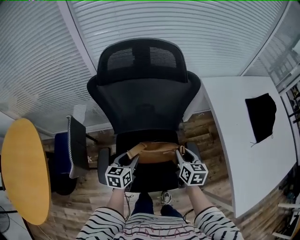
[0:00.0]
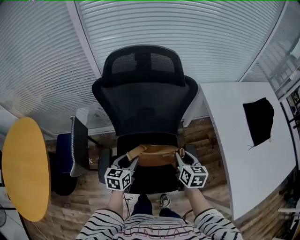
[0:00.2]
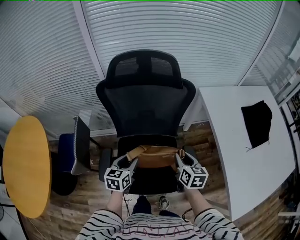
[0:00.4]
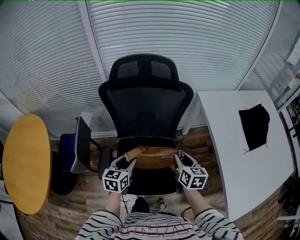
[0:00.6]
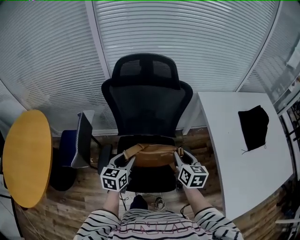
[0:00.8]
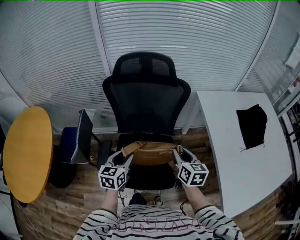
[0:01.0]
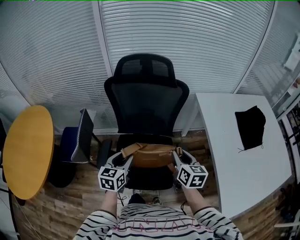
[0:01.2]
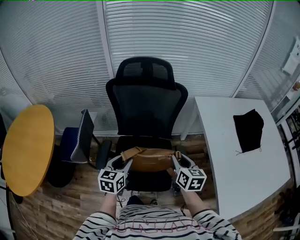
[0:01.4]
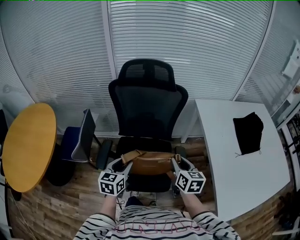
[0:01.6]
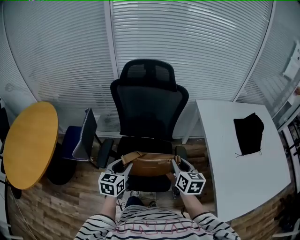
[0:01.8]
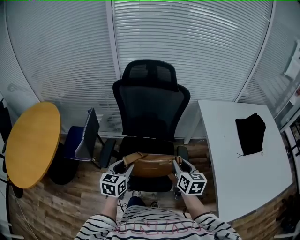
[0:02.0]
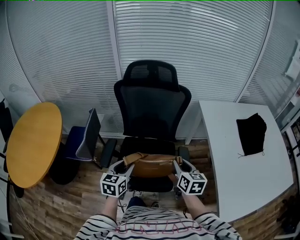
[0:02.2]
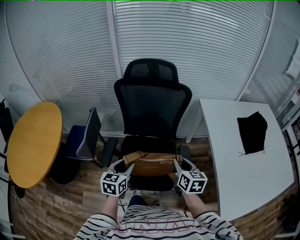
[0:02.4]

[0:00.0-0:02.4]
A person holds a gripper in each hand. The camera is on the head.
0:00.0 to 0:01.2: Both grippers travel together upward and backward, about 15 cm.
0:01.2 to 0:02.4: Both grippers move backward, approximately 5 cm.

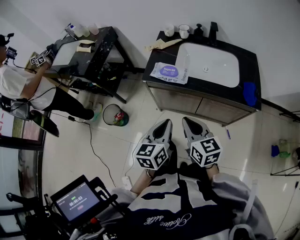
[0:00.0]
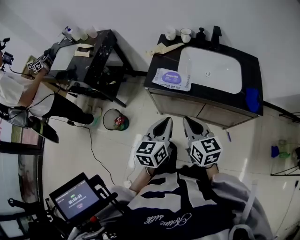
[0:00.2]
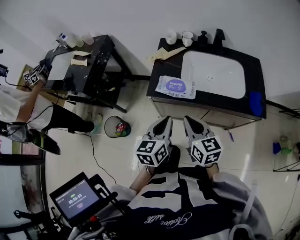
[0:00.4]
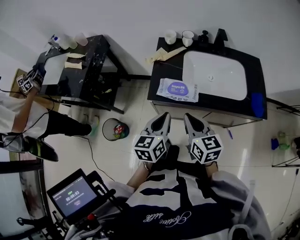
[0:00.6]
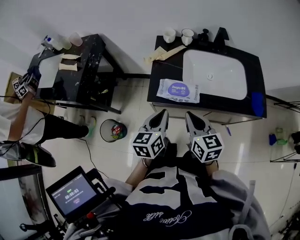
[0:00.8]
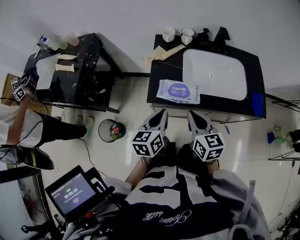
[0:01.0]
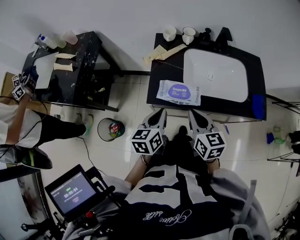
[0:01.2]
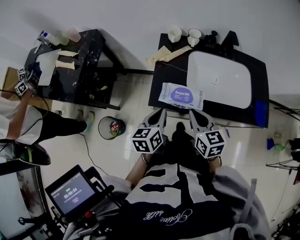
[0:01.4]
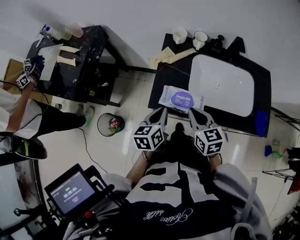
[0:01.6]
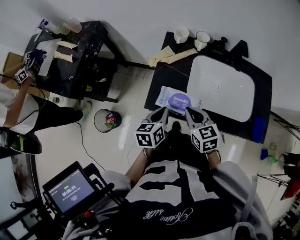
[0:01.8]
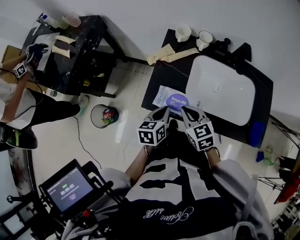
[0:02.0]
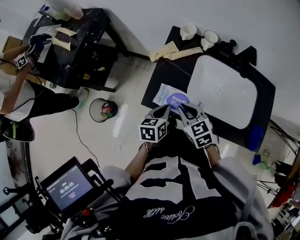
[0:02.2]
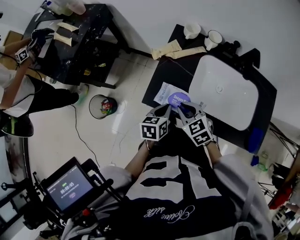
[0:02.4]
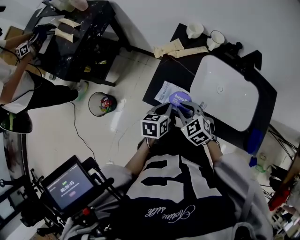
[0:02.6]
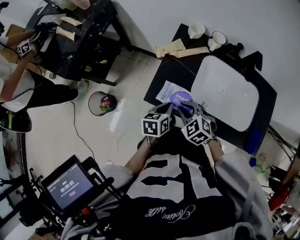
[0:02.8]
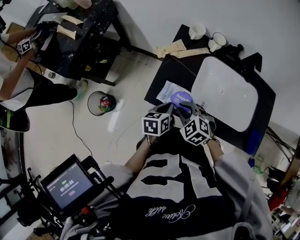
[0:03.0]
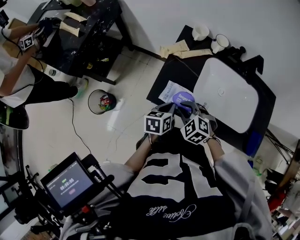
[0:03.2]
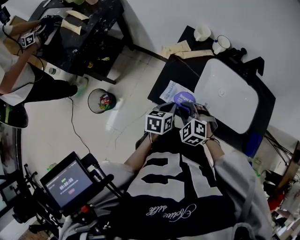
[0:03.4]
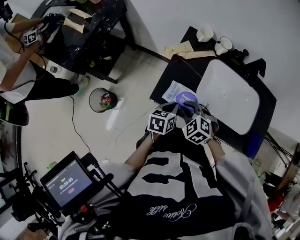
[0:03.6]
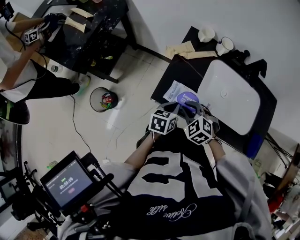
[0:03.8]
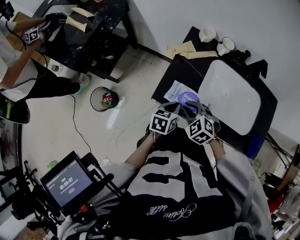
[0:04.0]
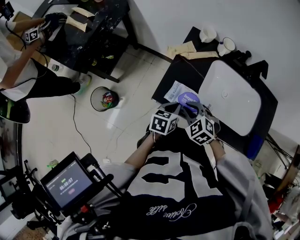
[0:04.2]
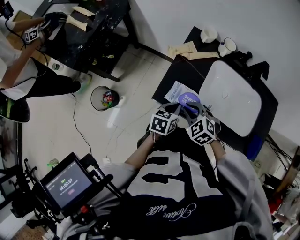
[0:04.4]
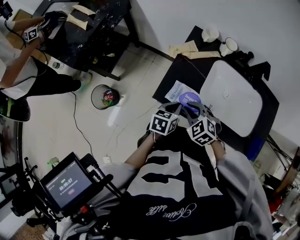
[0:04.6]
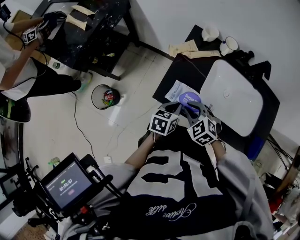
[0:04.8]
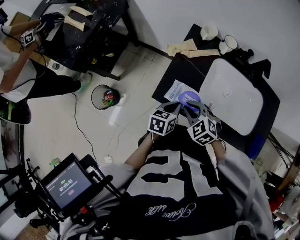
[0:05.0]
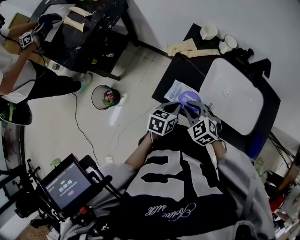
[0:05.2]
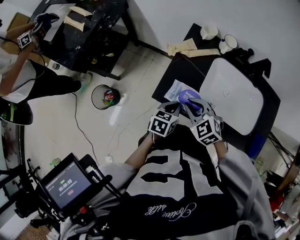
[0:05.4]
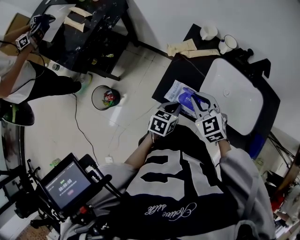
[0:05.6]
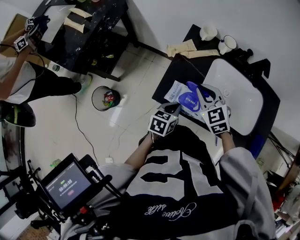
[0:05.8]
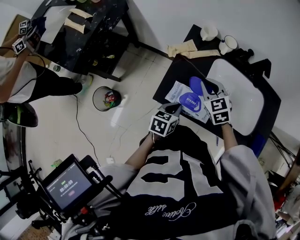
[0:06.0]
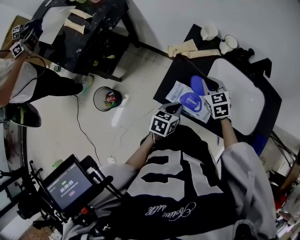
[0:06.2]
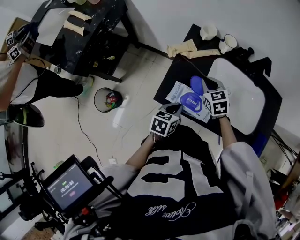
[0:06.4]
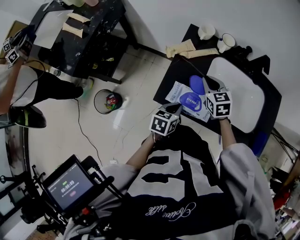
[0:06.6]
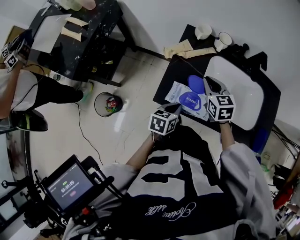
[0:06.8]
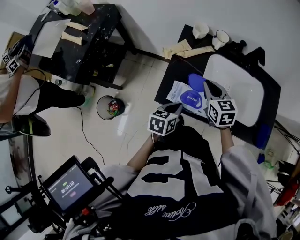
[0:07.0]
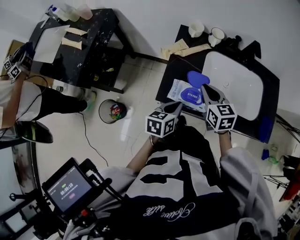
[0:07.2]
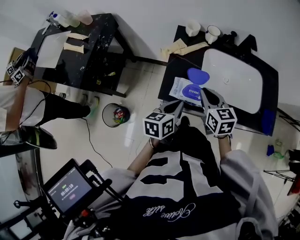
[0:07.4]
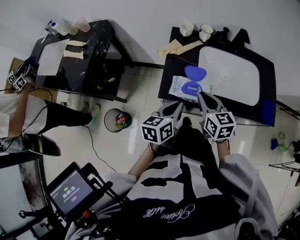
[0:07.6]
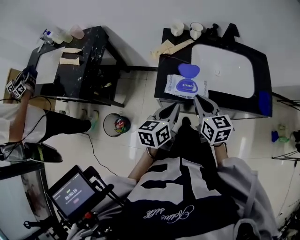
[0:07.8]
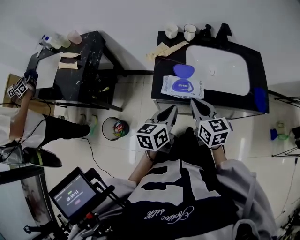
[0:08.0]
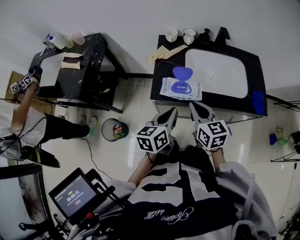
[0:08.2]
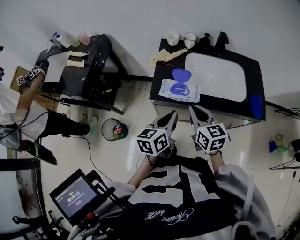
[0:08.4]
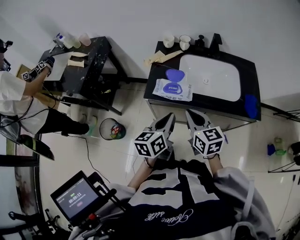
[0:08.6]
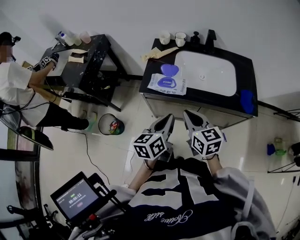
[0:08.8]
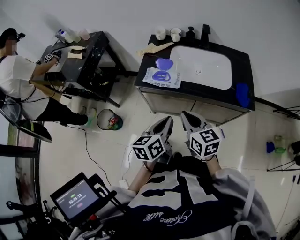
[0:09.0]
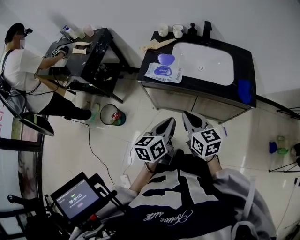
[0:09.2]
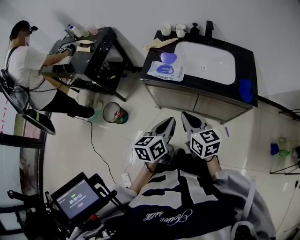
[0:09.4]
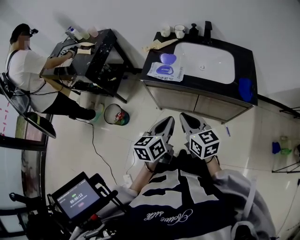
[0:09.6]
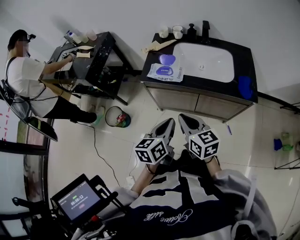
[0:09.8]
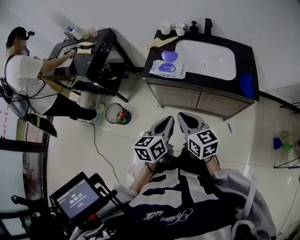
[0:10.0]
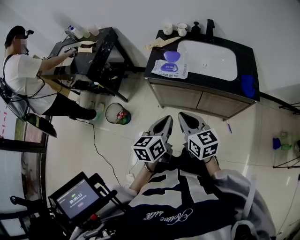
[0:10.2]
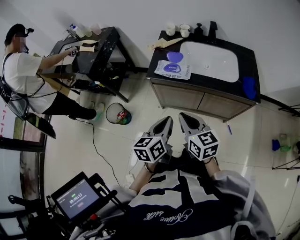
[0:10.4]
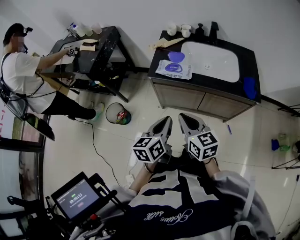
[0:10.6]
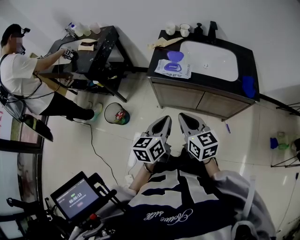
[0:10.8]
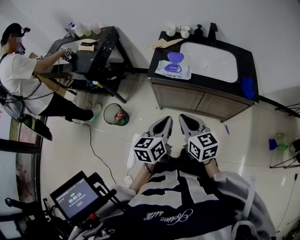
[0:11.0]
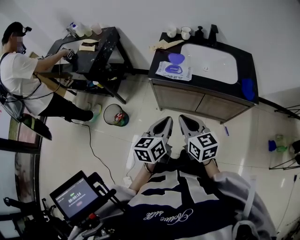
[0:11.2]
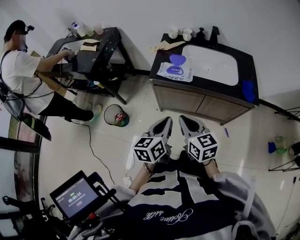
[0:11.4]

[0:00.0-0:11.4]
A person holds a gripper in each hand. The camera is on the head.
0:00.0 to 0:01.4: The left gripper heads forward and to the left, covering about 25 cm, while the right gripper travels forward by roughly 25 cm.
0:01.4 to 0:02.8: The right gripper shifts roughly 10 cm downward and forward, and rolls counterclockwise, seen from behind, by some 50 degrees; the left gripper goes approximately 10 cm downward and to the right.
0:02.8 to 0:04.2: The grippers stay close to where they were, moving slightly.
0:04.2 to 0:05.6: The right gripper heads upward, covering approximately 5 cm.
0:05.6 to 0:07.2: The right gripper moves some 10 cm forward and comes back, and turns by about 40 degrees. The left gripper goes roughly 5 cm upward.
0:07.2 to 0:08.6: The right gripper heads backward, covering about 20 cm; the left gripper moves backward, upward and to the right, approximately 20 cm.
0:08.6 to 0:10.0: Both grippers move backward, about 15 cm.
0:10.0 to 0:11.4: The grippers both shift to the left by approximately 5 cm.

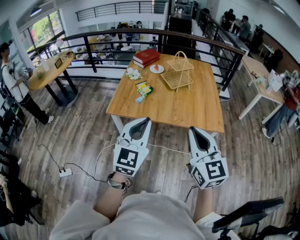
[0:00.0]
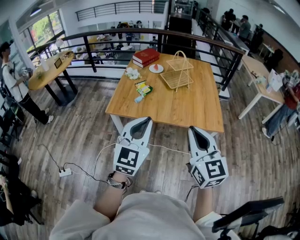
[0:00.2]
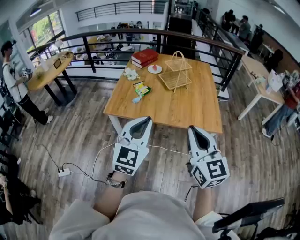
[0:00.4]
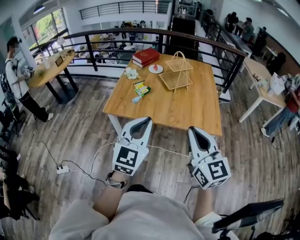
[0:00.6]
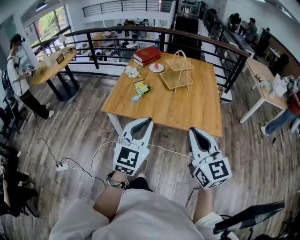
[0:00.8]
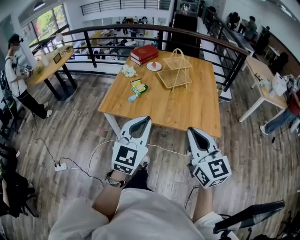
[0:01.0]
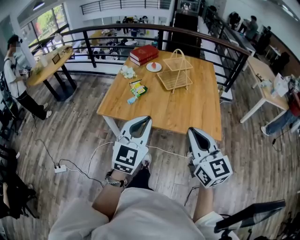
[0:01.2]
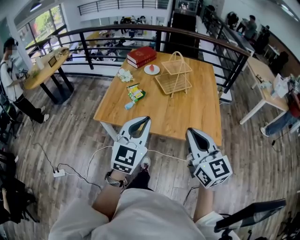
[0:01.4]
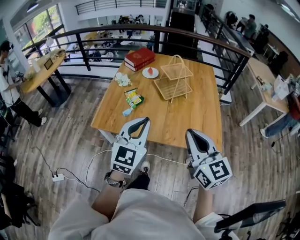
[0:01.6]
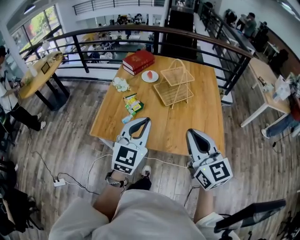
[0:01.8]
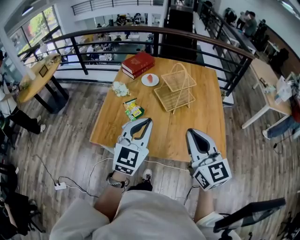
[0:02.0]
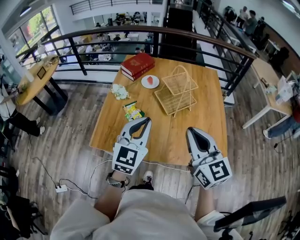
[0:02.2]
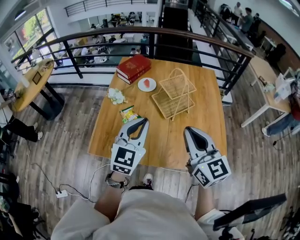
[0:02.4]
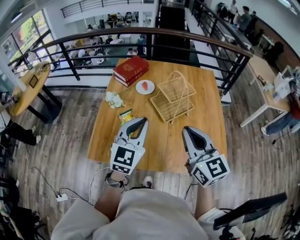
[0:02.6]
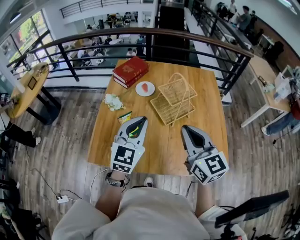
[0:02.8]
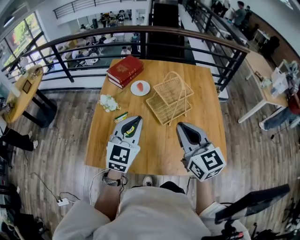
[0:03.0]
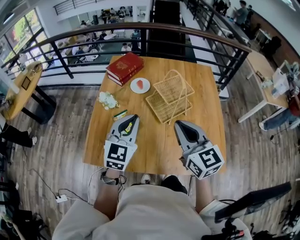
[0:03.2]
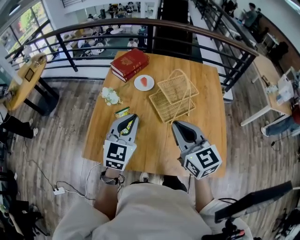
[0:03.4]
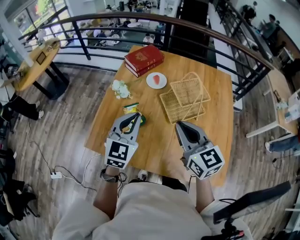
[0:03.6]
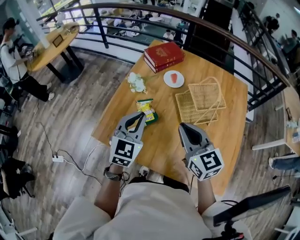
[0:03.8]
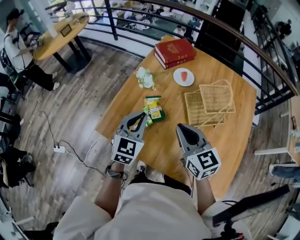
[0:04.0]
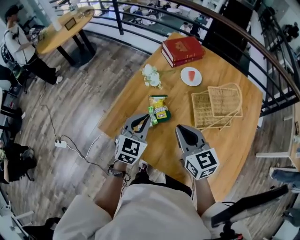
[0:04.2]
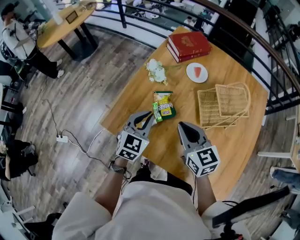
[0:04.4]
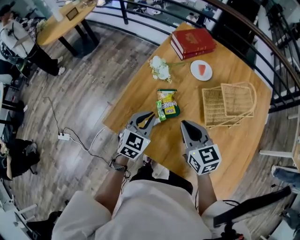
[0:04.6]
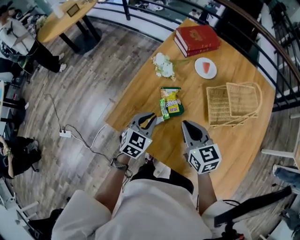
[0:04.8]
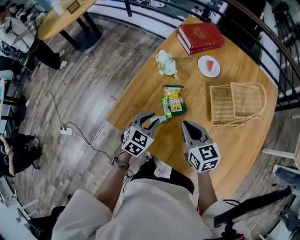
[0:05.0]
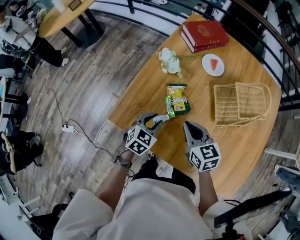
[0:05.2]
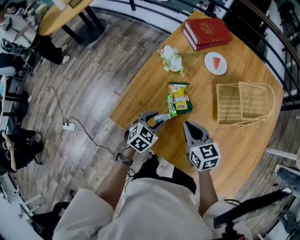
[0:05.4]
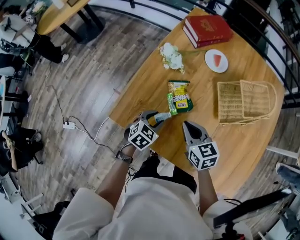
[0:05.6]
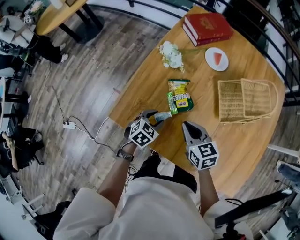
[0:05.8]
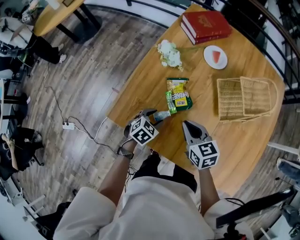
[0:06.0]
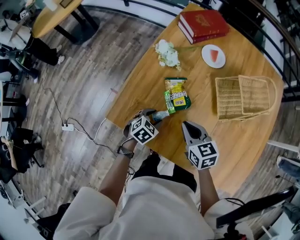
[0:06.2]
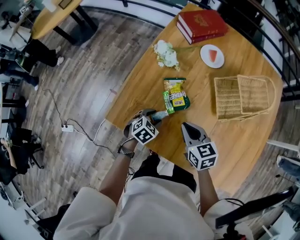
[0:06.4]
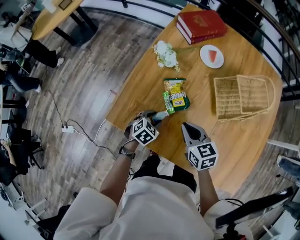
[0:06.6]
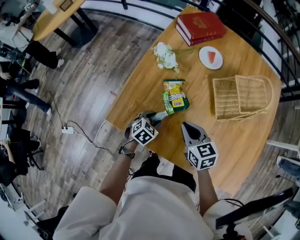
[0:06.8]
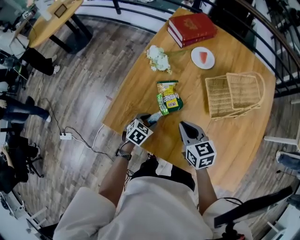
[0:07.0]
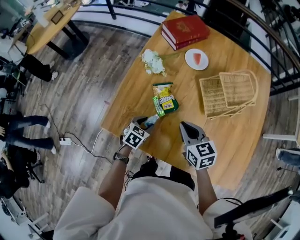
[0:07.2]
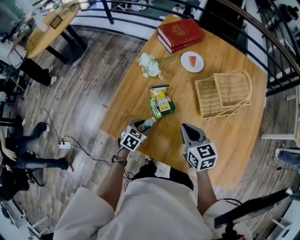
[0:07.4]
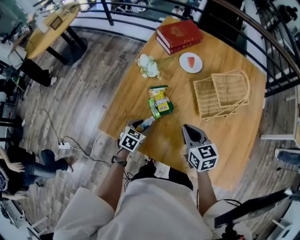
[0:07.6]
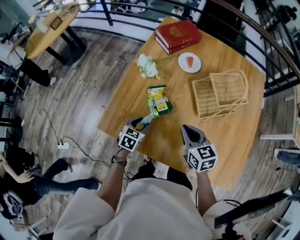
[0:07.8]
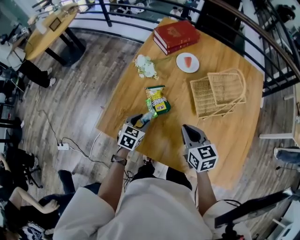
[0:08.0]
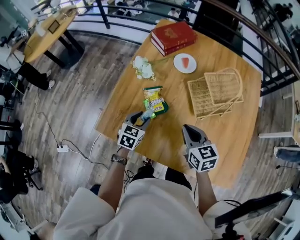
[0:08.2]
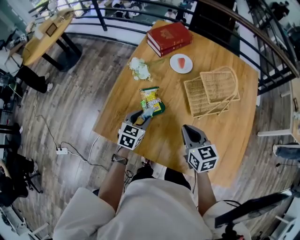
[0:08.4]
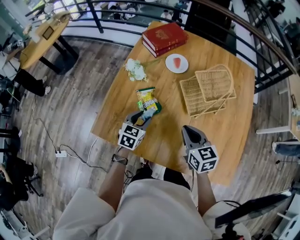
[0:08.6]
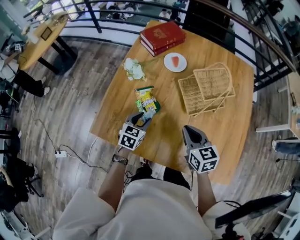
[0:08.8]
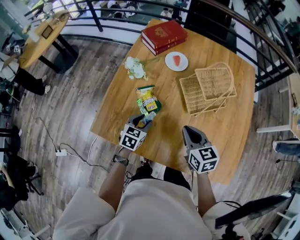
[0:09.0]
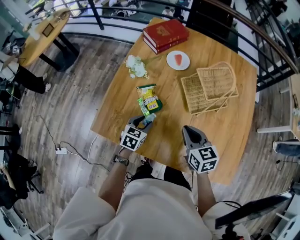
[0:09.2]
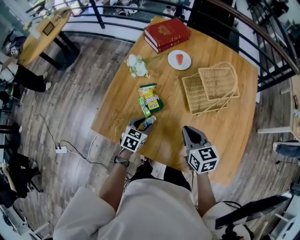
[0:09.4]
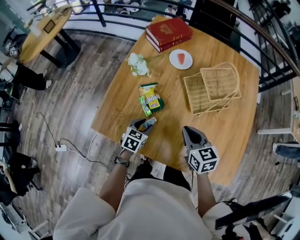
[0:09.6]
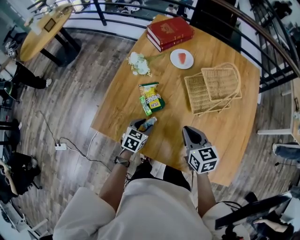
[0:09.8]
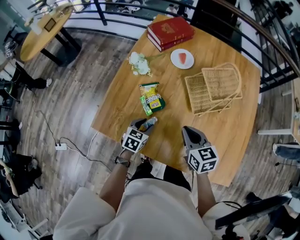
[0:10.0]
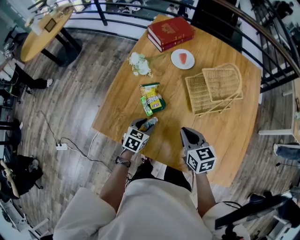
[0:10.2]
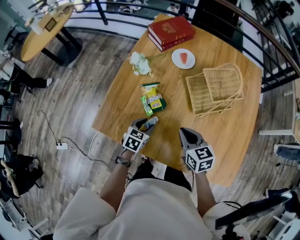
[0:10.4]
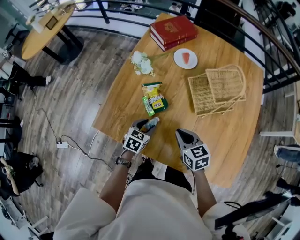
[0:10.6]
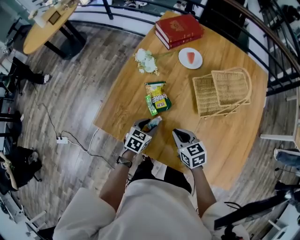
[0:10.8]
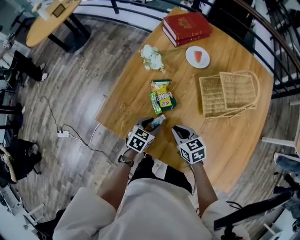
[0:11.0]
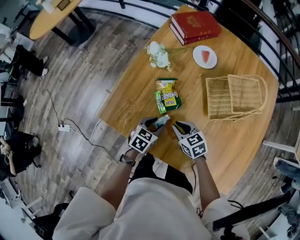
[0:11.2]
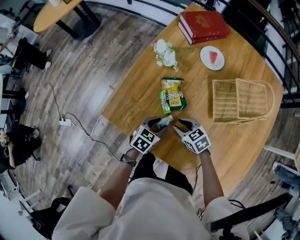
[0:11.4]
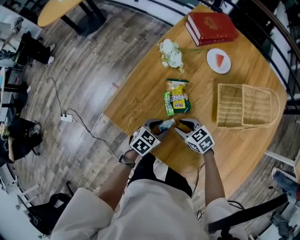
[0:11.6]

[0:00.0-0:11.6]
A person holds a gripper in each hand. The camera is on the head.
0:00.0 to 0:01.4: The grippers both shift forward and to the right by some 15 cm.
0:01.4 to 0:02.8: The grippers both shift forward by roughly 30 cm.
0:02.8 to 0:04.4: The right gripper moves about 25 cm, and swivels some 30 degrees; the left gripper heads downward, covering about 15 cm, and rotates approximately 30 degrees.
0:04.4 to 0:05.8: The grippers both shift downward by approximately 15 cm. The left gripper rotates some 30 degrees, and opens up.
0:05.8 to 0:07.2: The right gripper shifts by about 5 cm.
0:07.2 to 0:08.8: The right gripper moves to the right, some 10 cm. Meanwhile the left gripper travels upward and to the right by some 10 cm.
0:08.8 to 0:10.2: The left gripper shifts about 5 cm downward.
0:10.2 to 0:11.6: The right gripper goes some 20 cm downward and to the left, changes its angle by approximately 40 degrees, and opens up.
